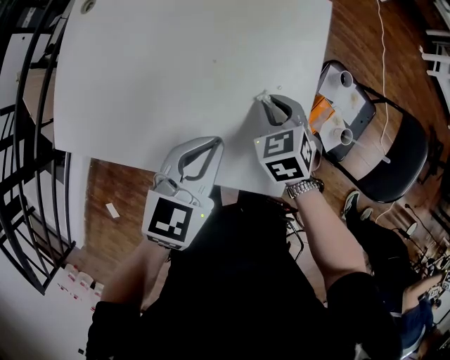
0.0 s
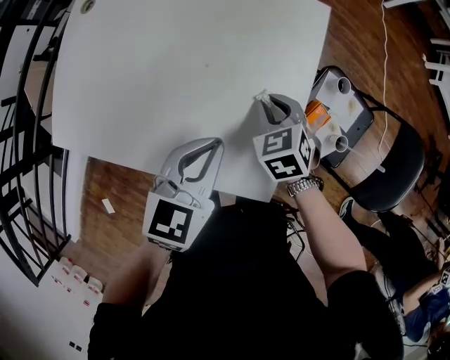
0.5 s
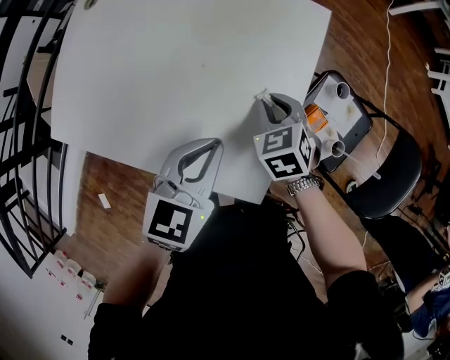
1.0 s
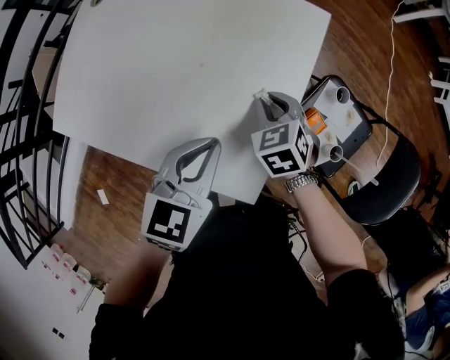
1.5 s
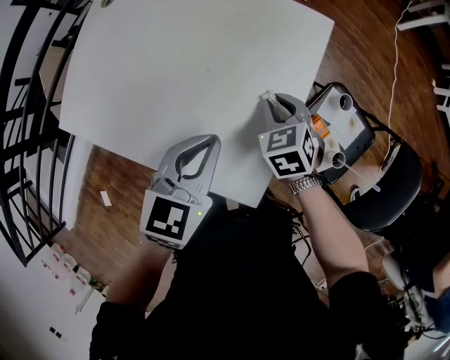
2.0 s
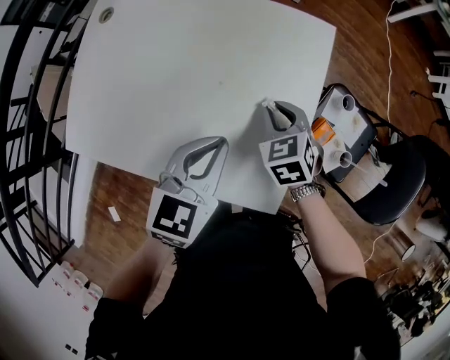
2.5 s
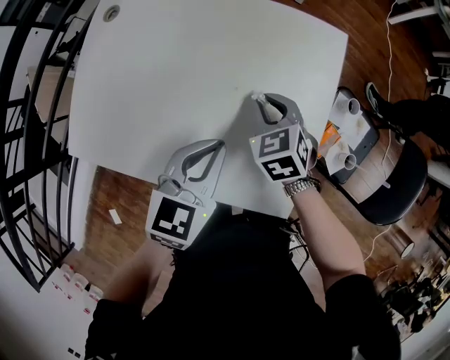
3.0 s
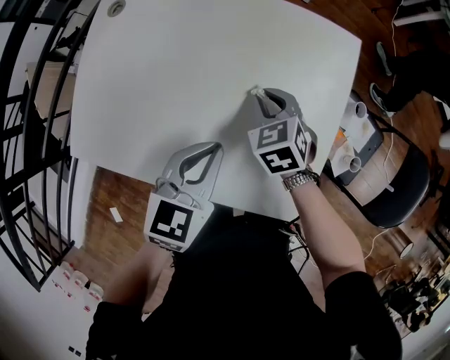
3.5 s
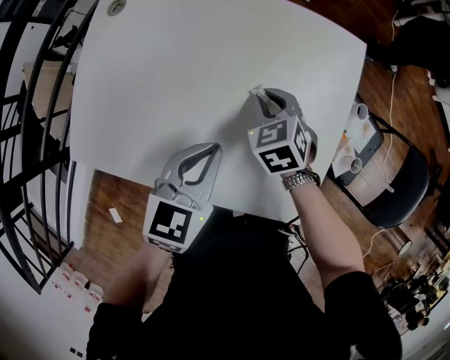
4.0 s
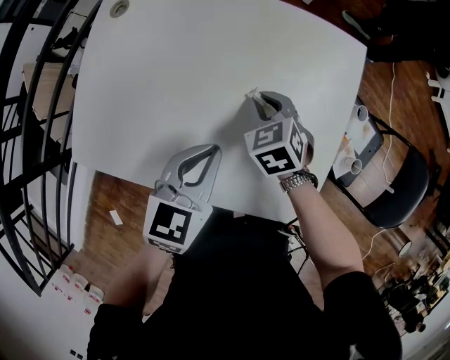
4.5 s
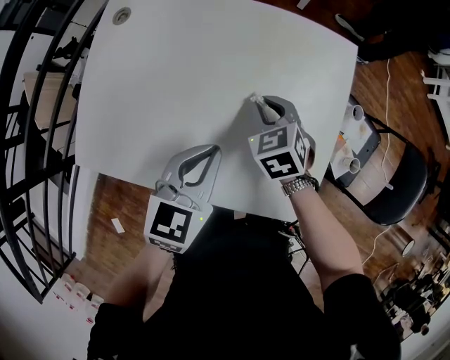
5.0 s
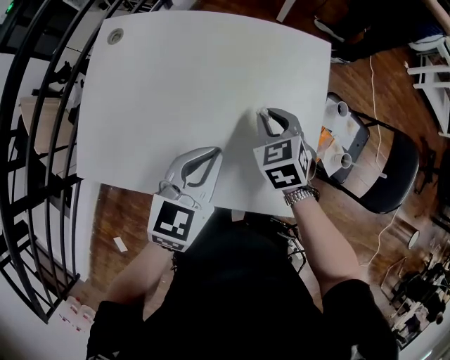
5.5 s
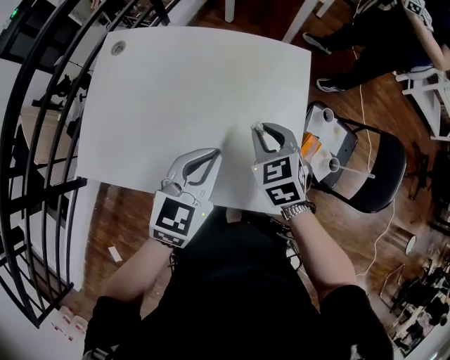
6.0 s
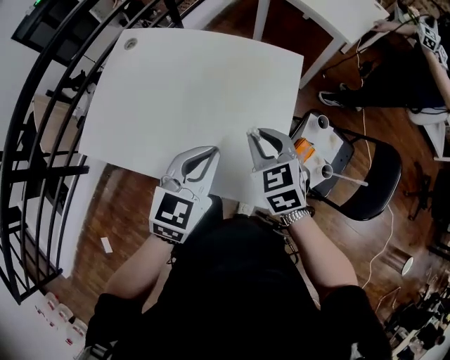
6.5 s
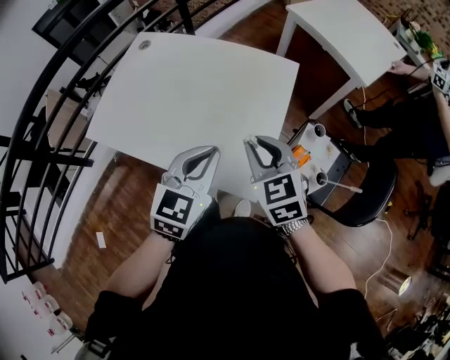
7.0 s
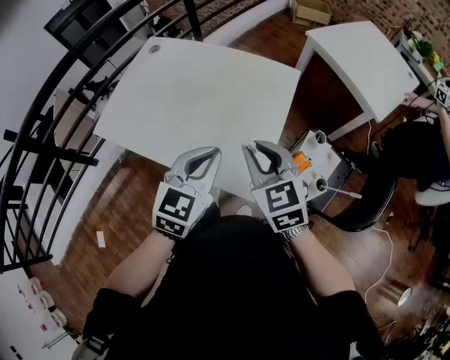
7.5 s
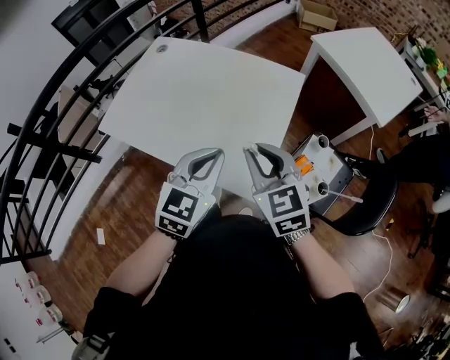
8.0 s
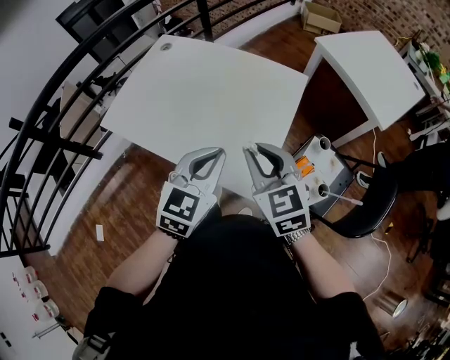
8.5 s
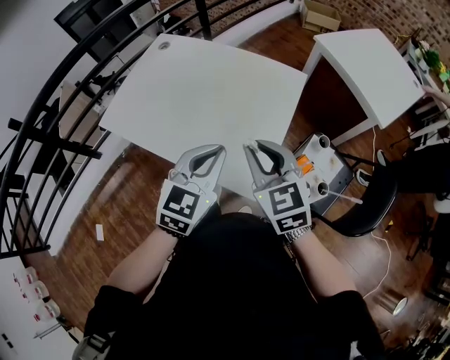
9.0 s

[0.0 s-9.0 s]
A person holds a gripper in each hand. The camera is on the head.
0.0 to 2.0 s: The right gripper ends up roughly 5 cm from where it was. Meanwhile the left gripper shifts by some 5 cm.
2.0 to 4.5 s: Both grippers move to the left, about 15 cm.
4.5 to 7.0 s: The right gripper goes about 30 cm upward, backward and to the right, and changes its angle by some 20 degrees; the left gripper goes approximately 20 cm to the right, upward and backward.
7.0 to 9.0 s: The right gripper changes place by about 5 cm.

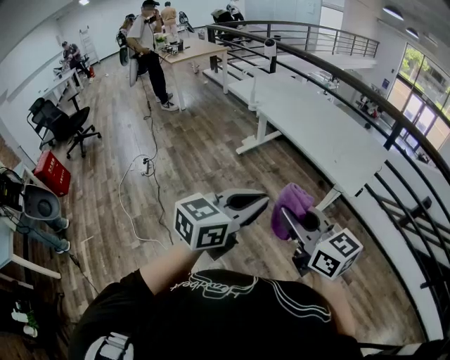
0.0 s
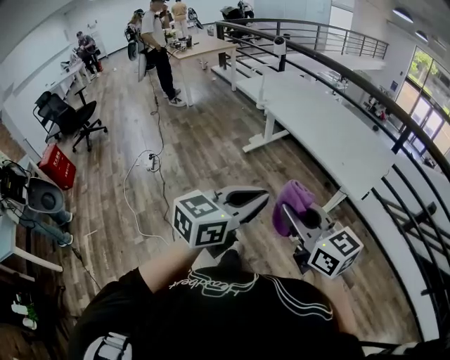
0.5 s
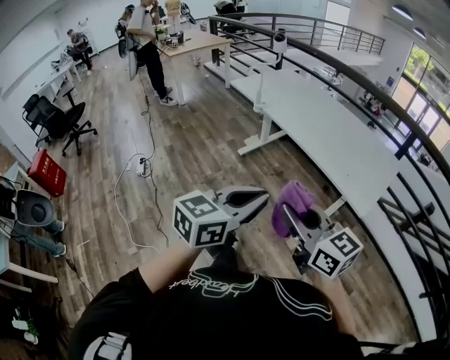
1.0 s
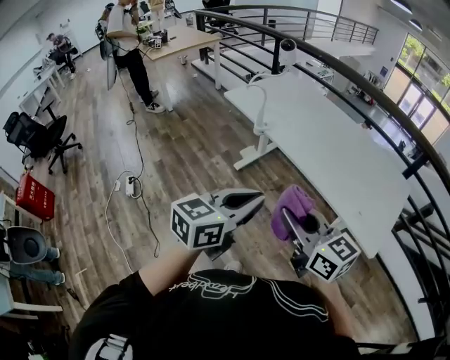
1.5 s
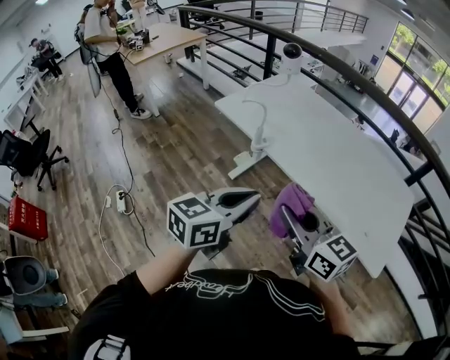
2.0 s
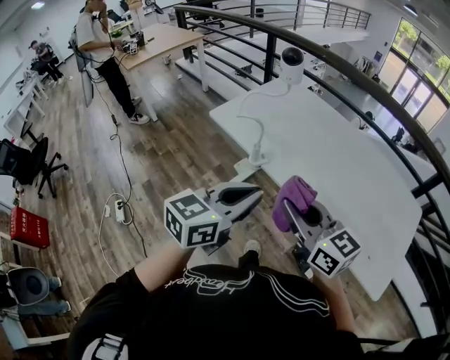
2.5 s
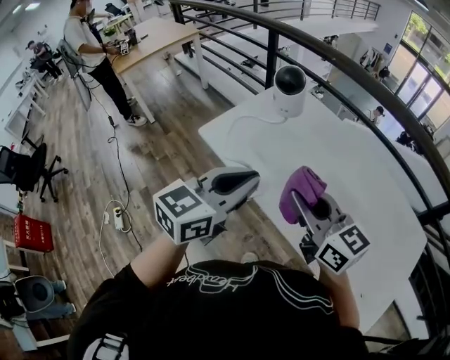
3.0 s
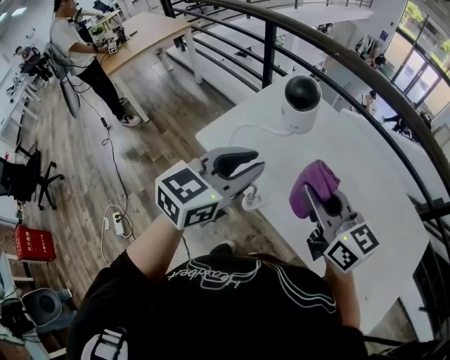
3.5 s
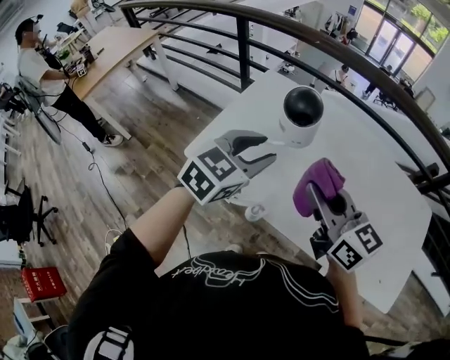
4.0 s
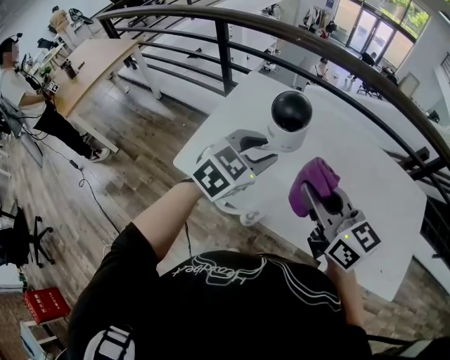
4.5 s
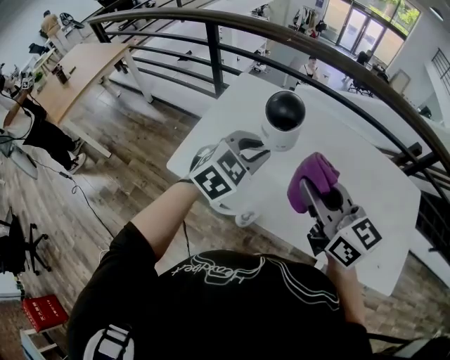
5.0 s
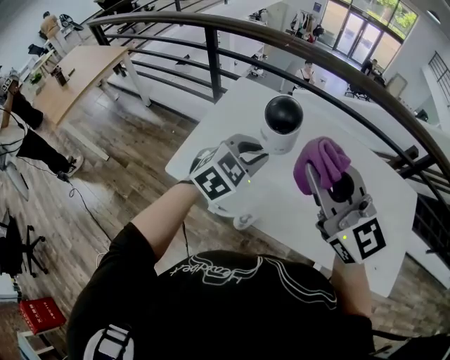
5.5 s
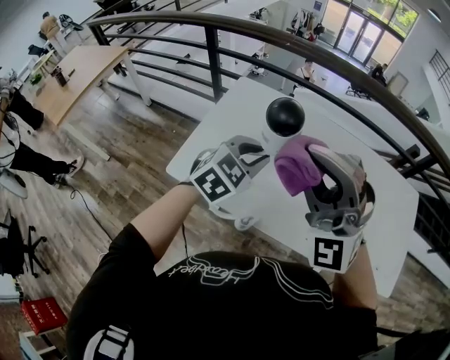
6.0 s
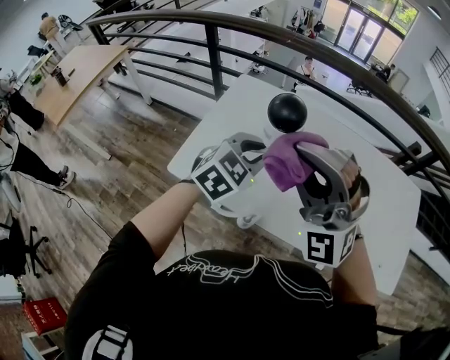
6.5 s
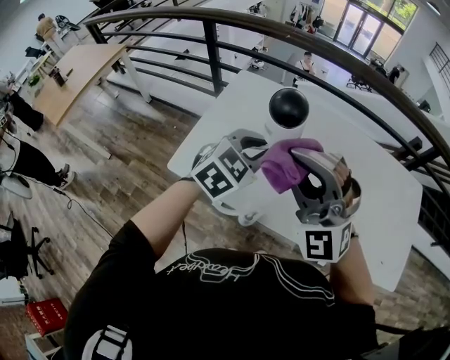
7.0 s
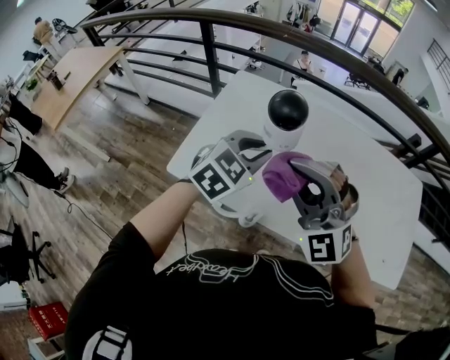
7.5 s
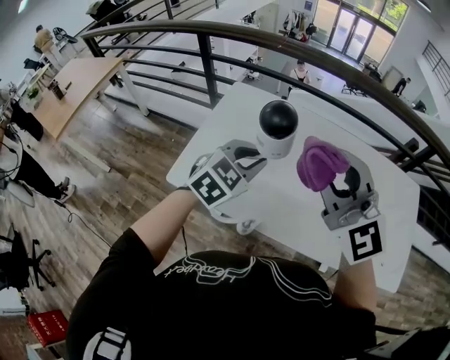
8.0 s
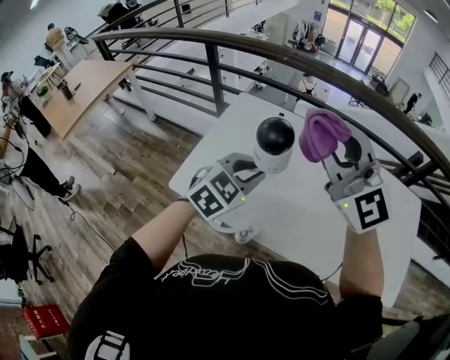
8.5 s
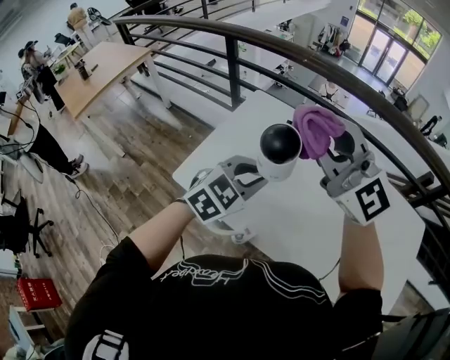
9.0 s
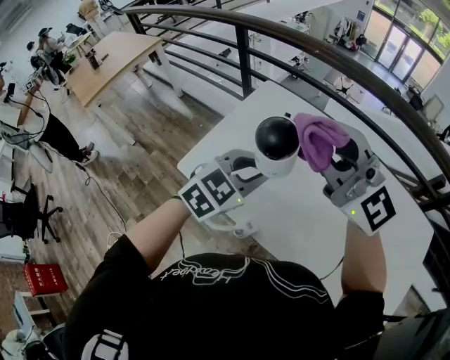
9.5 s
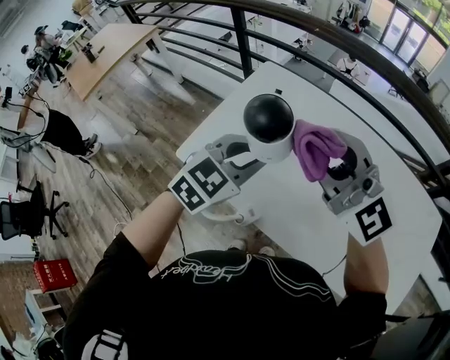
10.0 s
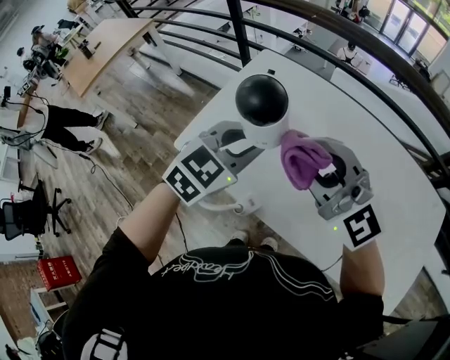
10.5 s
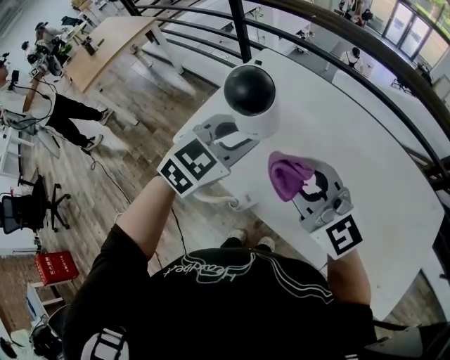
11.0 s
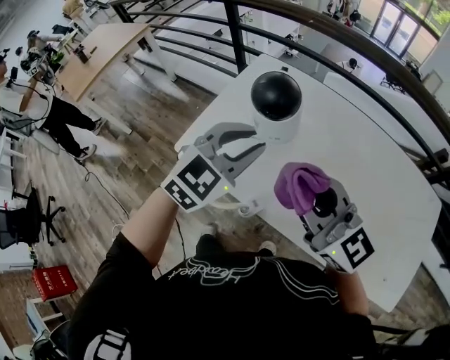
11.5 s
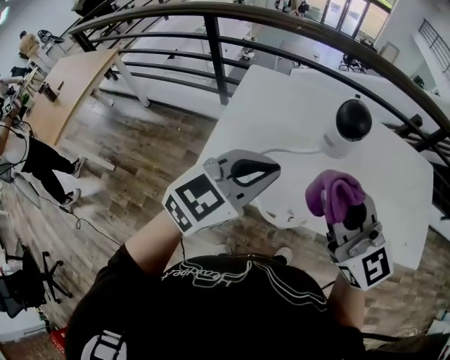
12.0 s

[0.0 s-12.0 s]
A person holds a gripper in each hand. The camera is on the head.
0.0 to 2.0 s: The two grippers travel together, forward, about 60 cm.
2.0 to 4.0 s: The pair of grippers is taken forward, about 50 cm. The left gripper changes its angle by roughly 30 degrees, and opens.
4.0 to 6.0 s: The left gripper changes place by some 5 cm; the right gripper shifts about 10 cm upward, and rotates around the line of its fingers by roughly 80 degrees, counterclockwise from behind.
6.0 to 8.0 s: The right gripper moves about 10 cm downward and comes back, and swivels some 30 degrees.
8.0 to 10.0 s: The right gripper travels forward by roughly 5 cm, and turns by roughly 30 degrees.
10.0 to 12.0 s: The right gripper changes place by approximately 15 cm, and changes its angle by about 40 degrees. Meanwhile the left gripper shifts by some 15 cm, and swivels approximately 30 degrees.

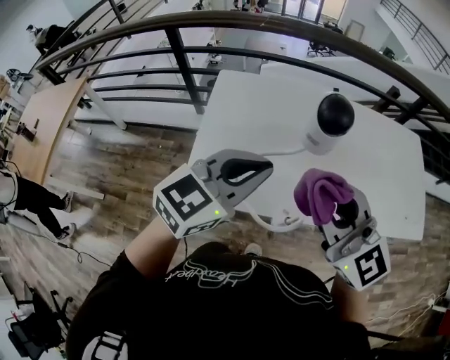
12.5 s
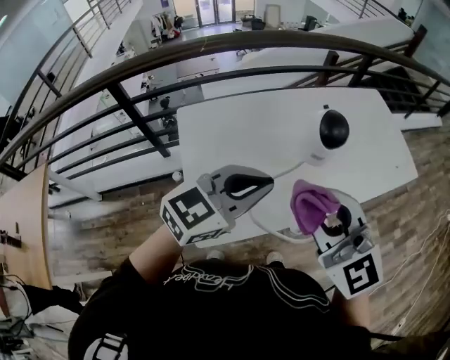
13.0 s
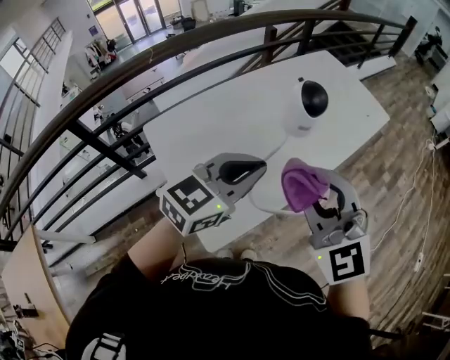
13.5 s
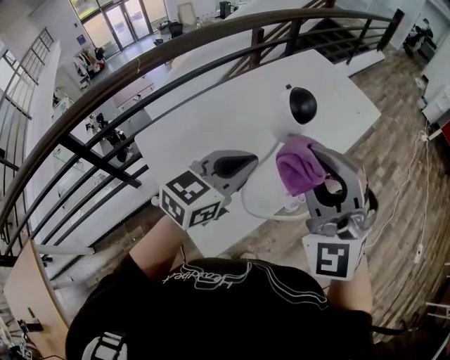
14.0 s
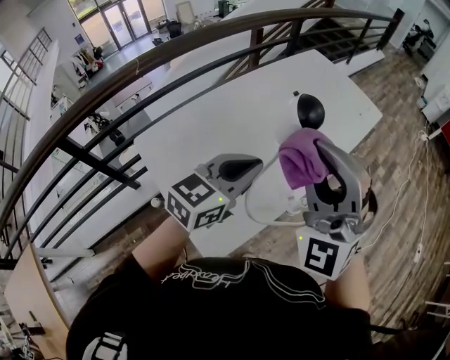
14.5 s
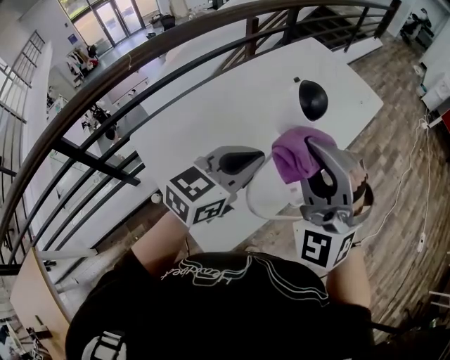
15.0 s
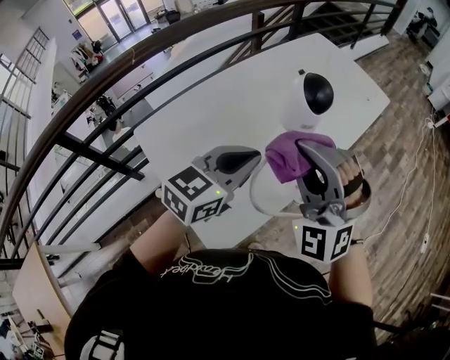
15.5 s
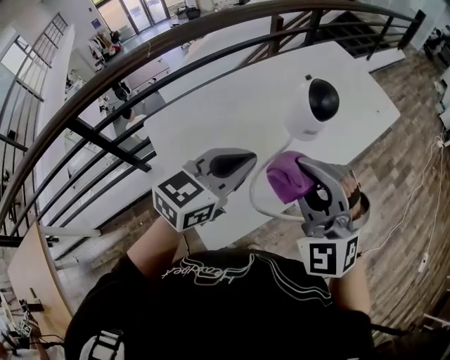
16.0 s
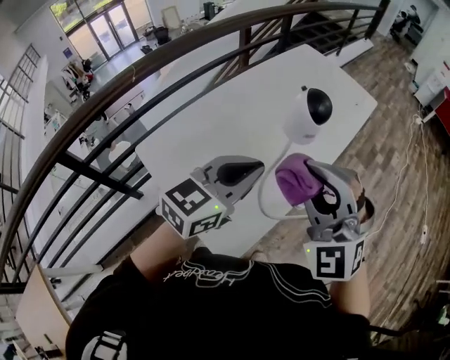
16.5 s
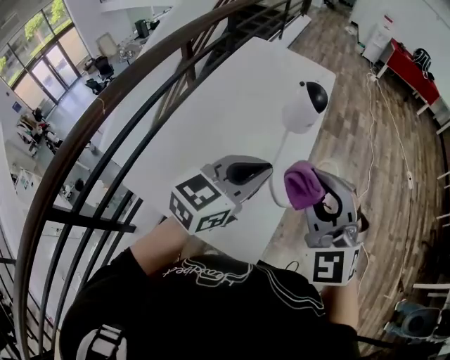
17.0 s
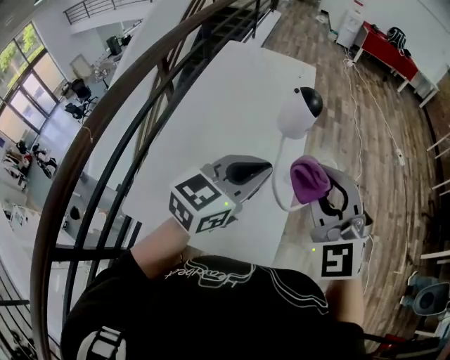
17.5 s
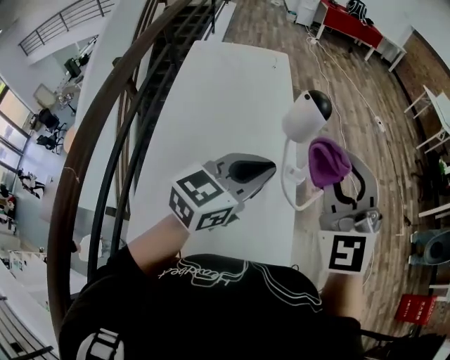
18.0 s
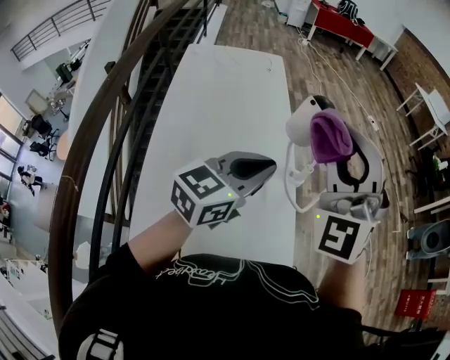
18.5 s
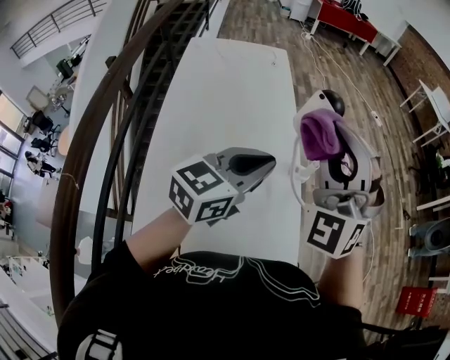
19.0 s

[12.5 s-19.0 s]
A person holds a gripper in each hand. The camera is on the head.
12.5 to 14.5 s: The right gripper changes place by approximately 15 cm, and changes its angle by approximately 90 degrees. Meanwhile the left gripper changes place by about 10 cm, and rotates some 40 degrees.
14.5 to 17.0 s: The right gripper ends up about 10 cm from where it was, and swivels approximately 30 degrees. The left gripper changes place by approximately 5 cm, and changes its angle by roughly 30 degrees.
17.0 to 19.0 s: The left gripper shifts by some 10 cm, and rotates about 30 degrees. Meanwhile the right gripper changes place by about 15 cm, and turns by about 40 degrees.
